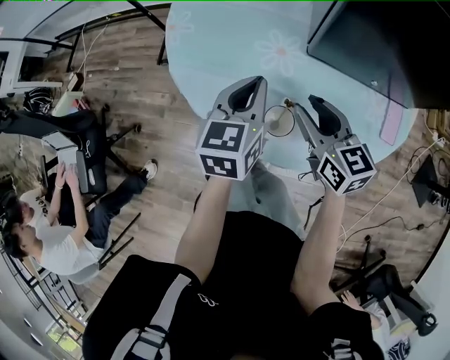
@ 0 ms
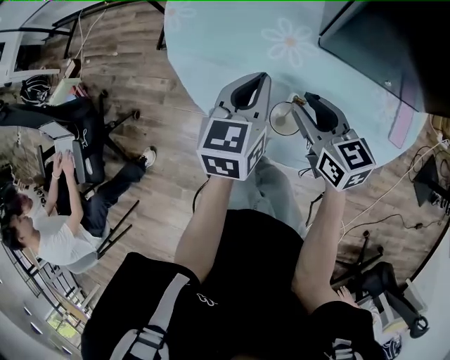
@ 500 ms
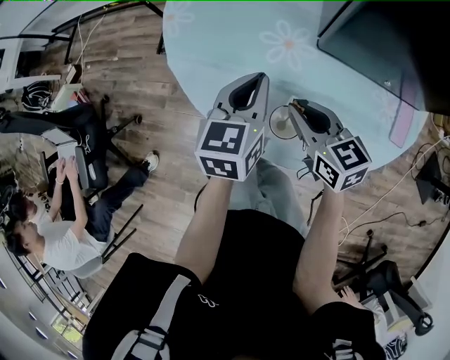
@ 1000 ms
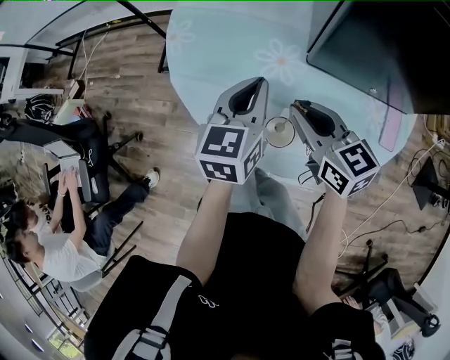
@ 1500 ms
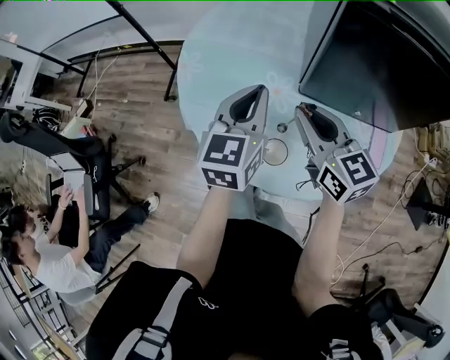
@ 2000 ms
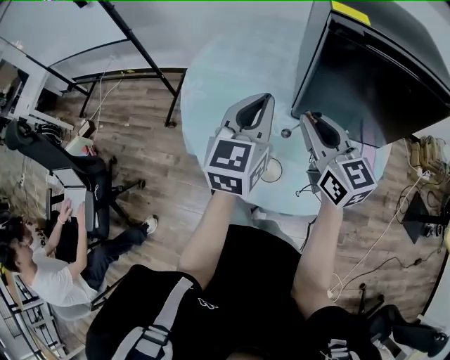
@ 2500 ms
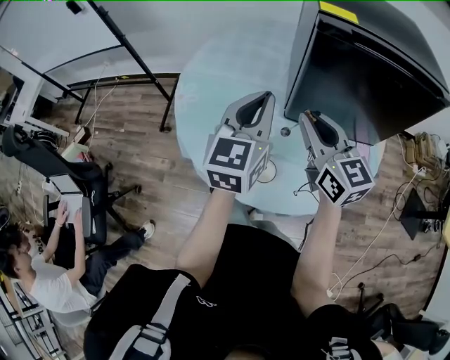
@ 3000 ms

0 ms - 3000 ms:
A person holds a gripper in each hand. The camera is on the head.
0 ms - 1500 ms: The right gripper closes.
1500 ms - 3000 ms: The grippers both shift upward by some 15 cm. The right gripper changes its angle by approximately 20 degrees.

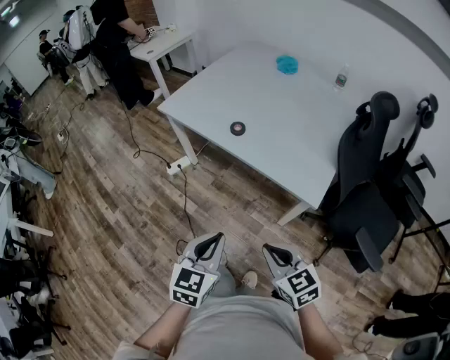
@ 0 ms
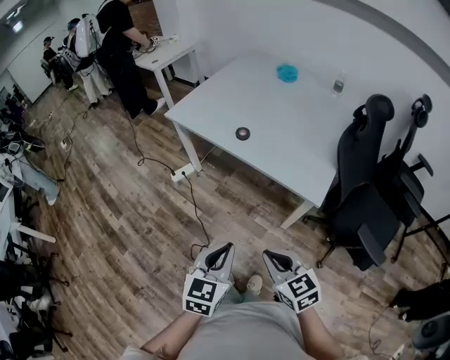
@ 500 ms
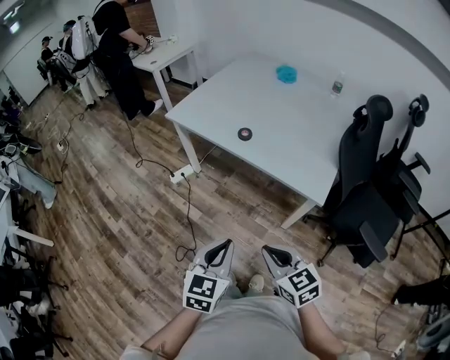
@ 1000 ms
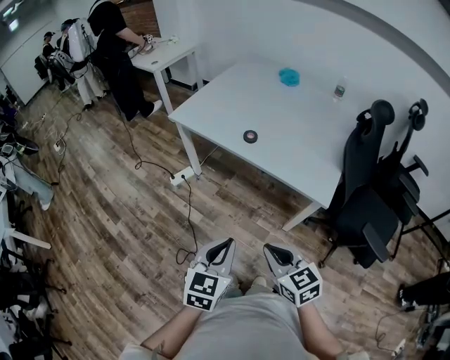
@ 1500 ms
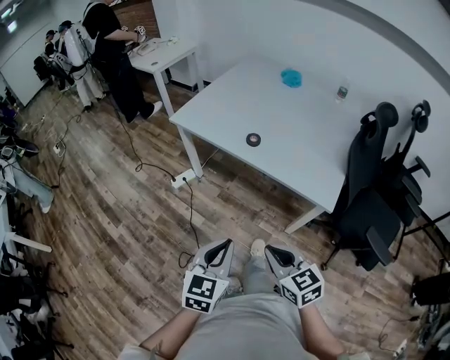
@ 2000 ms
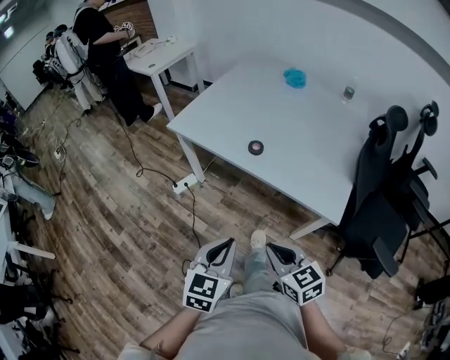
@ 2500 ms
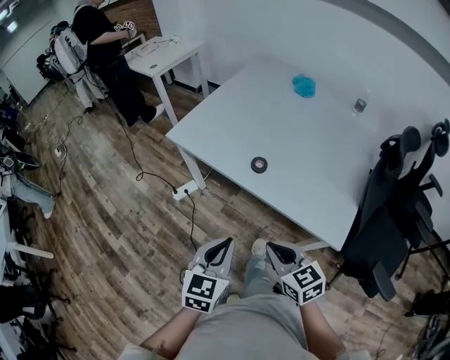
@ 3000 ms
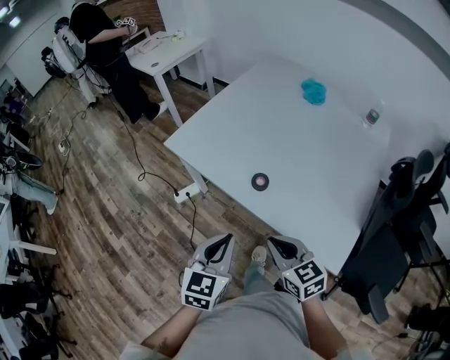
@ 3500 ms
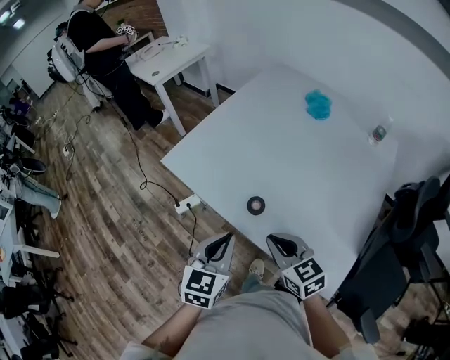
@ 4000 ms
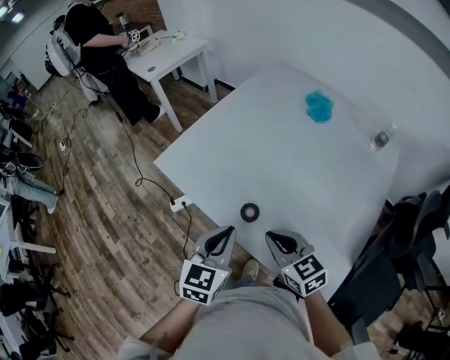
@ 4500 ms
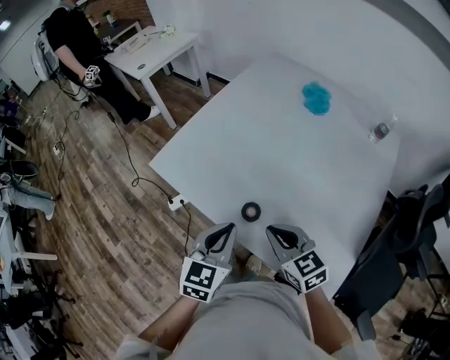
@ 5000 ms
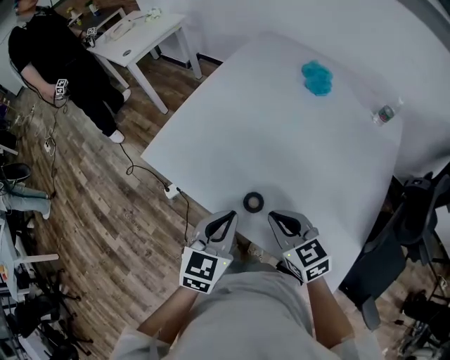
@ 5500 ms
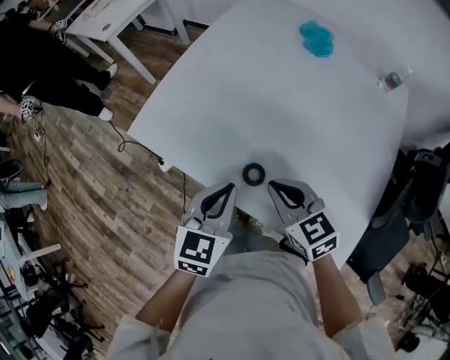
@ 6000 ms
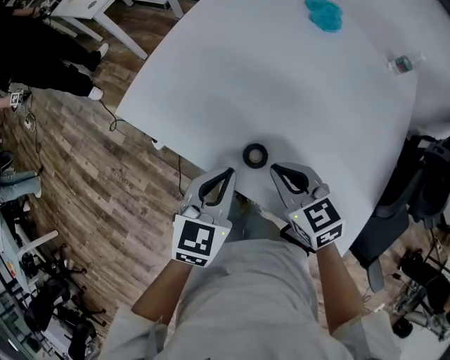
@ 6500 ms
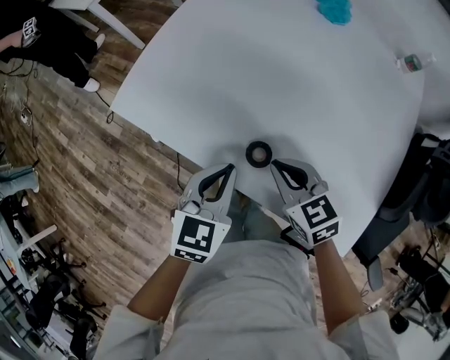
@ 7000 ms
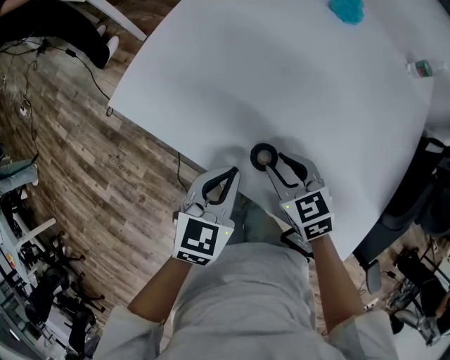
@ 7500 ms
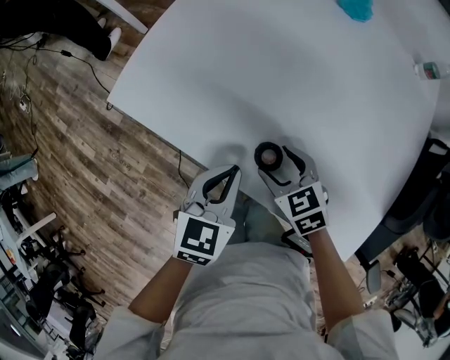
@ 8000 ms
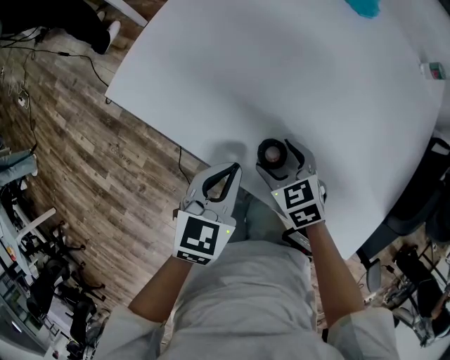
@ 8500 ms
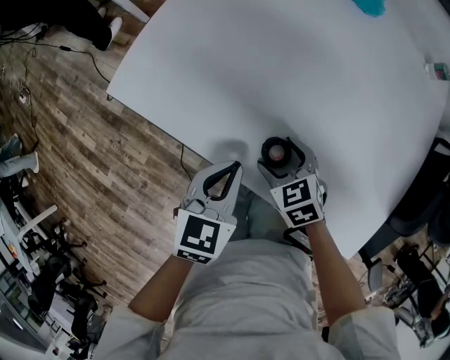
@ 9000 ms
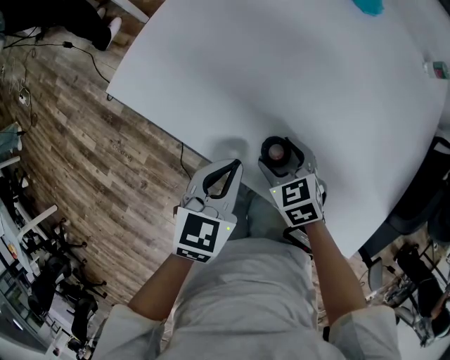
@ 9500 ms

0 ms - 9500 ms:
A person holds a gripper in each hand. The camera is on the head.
0 ms - 2000 ms: The grippers both shift to the left by some 10 cm.
2000 ms - 4000 ms: The grippers both shift forward by some 35 cm.
4000 ms - 5500 ms: Both grippers move forward, roughly 10 cm.
5500 ms - 7500 ms: Both grippers travel together downward, approximately 10 cm.
7500 ms - 9500 ms: The right gripper heads downward, covering some 5 cm, and opens.

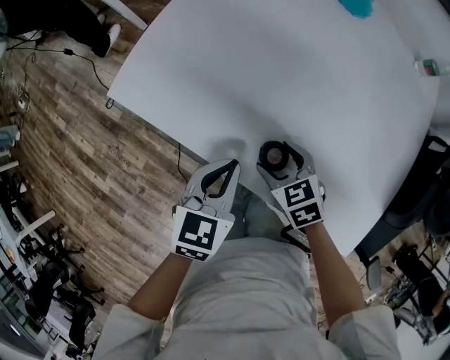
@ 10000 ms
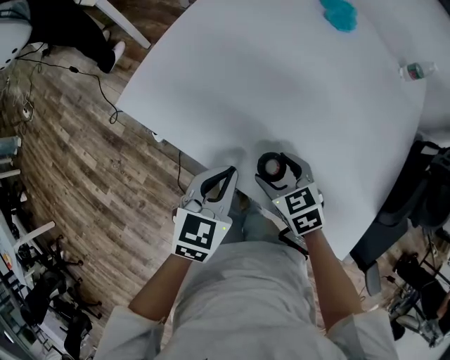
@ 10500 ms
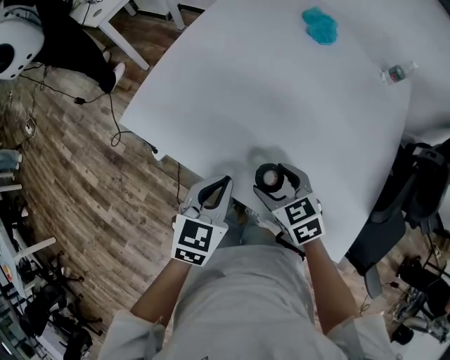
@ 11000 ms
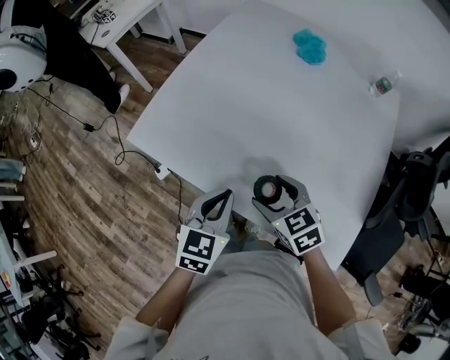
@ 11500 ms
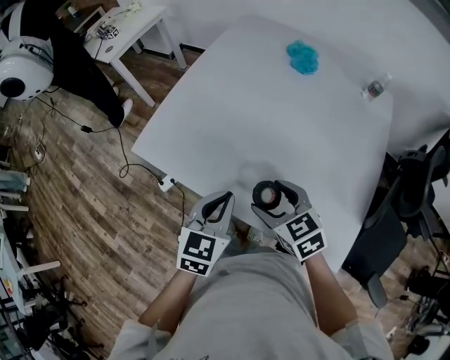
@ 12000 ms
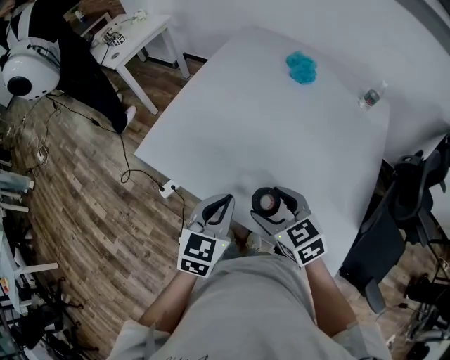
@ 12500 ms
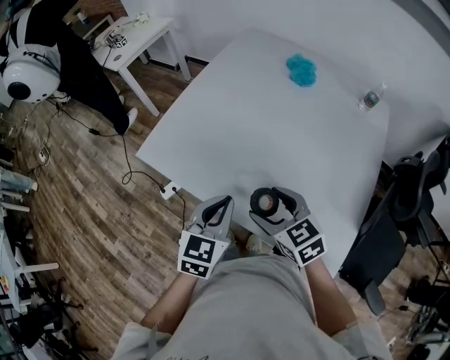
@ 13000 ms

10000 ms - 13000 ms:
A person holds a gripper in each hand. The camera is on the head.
10000 ms - 11500 ms: The left gripper heads upward, covering approximately 5 cm. The right gripper is displaced upward by approximately 10 cm.
11500 ms - 13000 ms: The right gripper shifts approximately 5 cm upward.

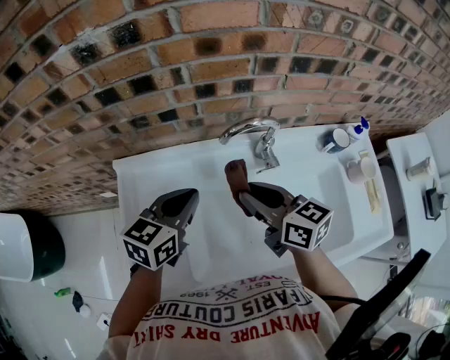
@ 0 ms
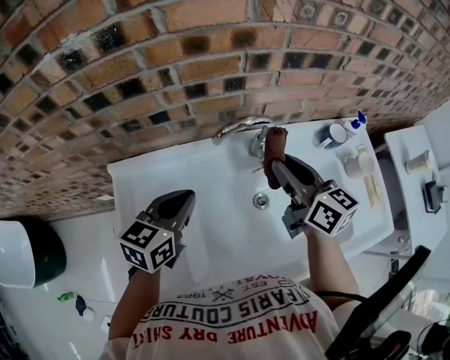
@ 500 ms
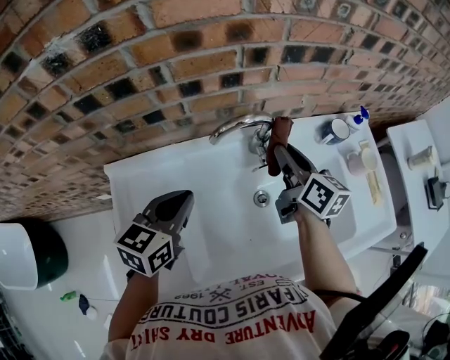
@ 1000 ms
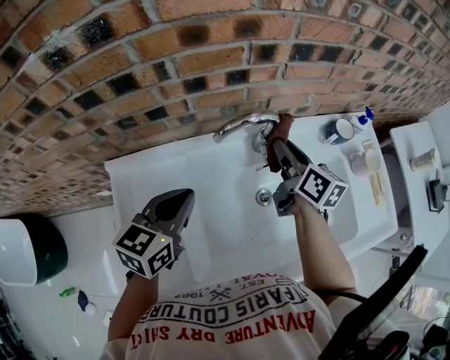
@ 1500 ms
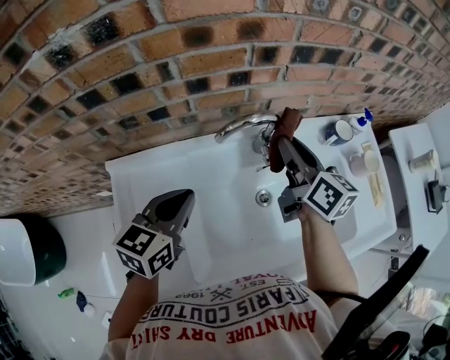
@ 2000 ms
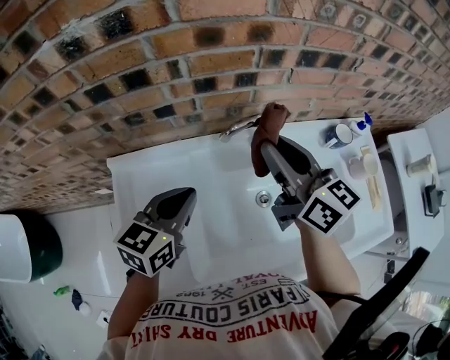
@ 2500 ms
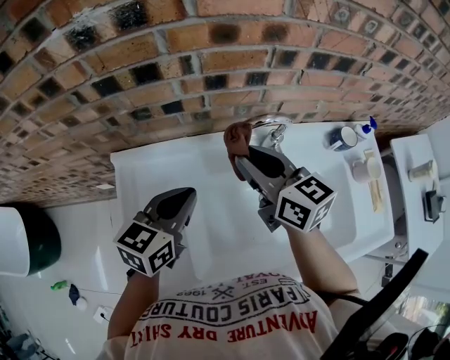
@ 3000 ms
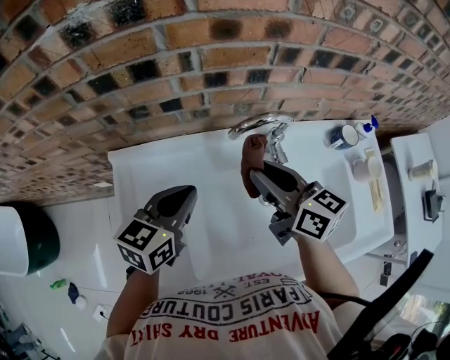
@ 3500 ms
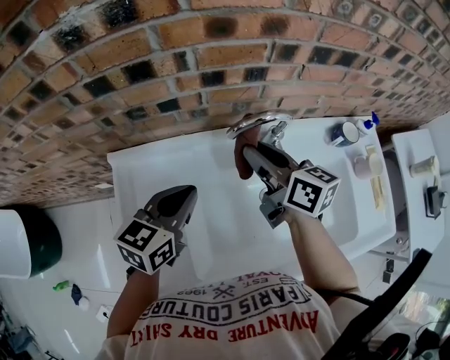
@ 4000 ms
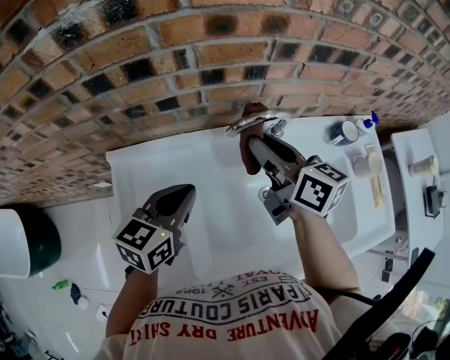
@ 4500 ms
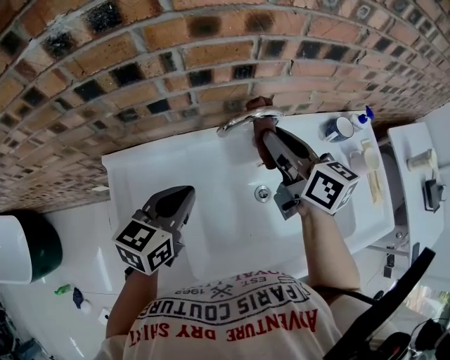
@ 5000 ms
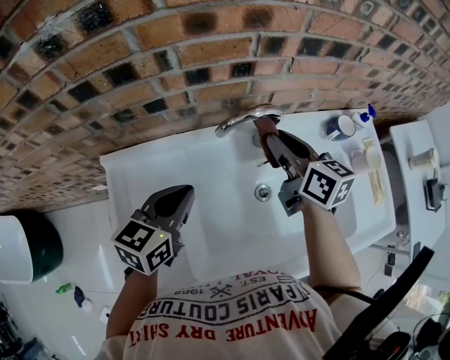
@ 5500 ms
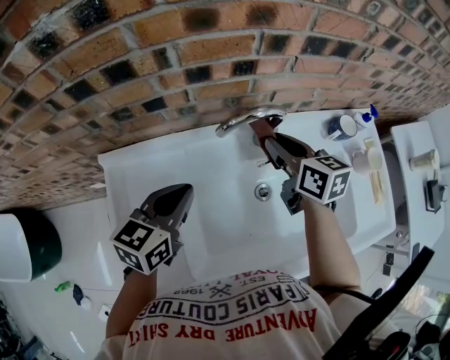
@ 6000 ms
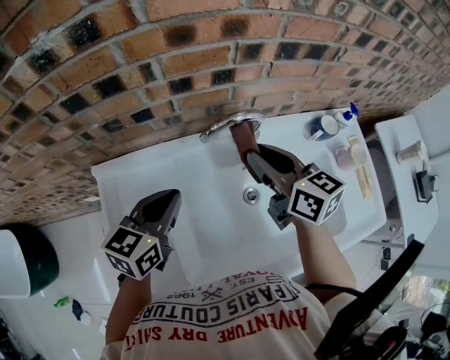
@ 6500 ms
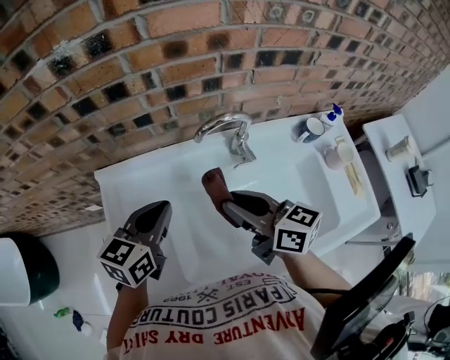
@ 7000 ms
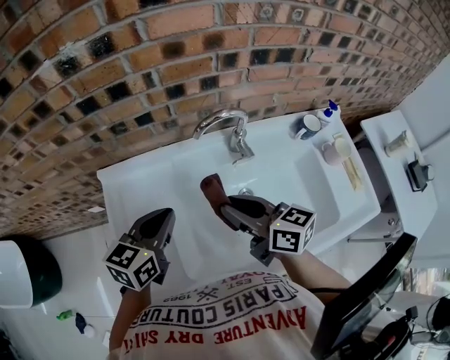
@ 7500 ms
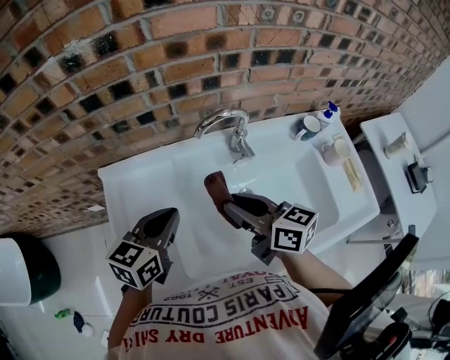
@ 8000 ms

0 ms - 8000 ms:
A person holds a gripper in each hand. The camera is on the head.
0 ms - 2000 ms: The right gripper is displaced forward and to the right by some 15 cm, and rotates about 30 degrees.
2000 ms - 4000 ms: The right gripper goes some 10 cm to the left.
4000 ms - 6000 ms: The right gripper moves to the right, approximately 10 cm.
6000 ms - 8000 ms: The right gripper shifts roughly 20 cm backward and to the left, and rotates some 20 degrees. The left gripper moves backward, roughly 10 cm.

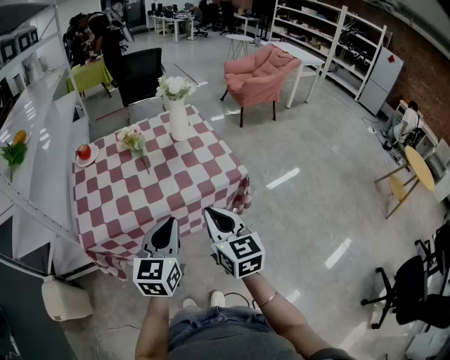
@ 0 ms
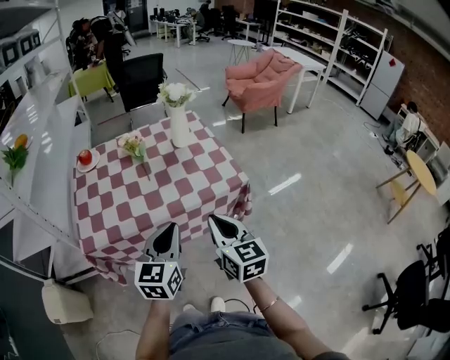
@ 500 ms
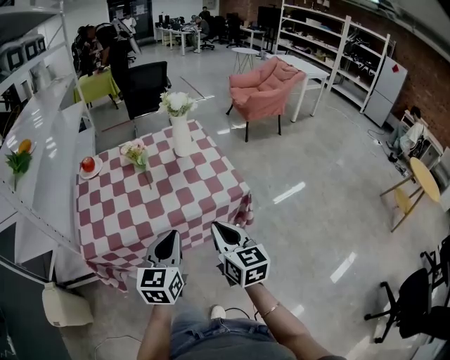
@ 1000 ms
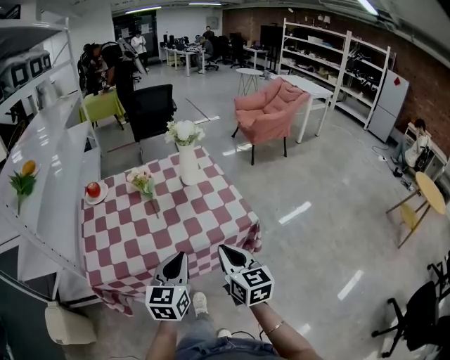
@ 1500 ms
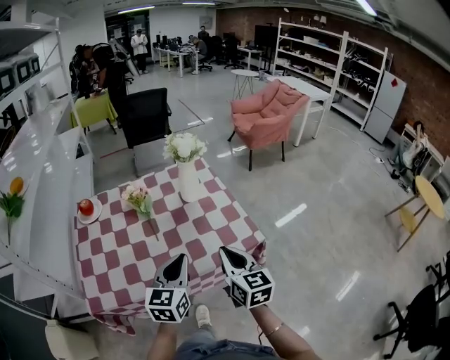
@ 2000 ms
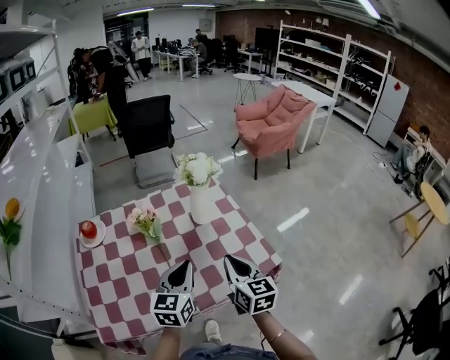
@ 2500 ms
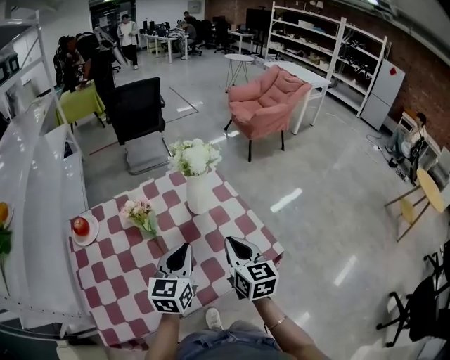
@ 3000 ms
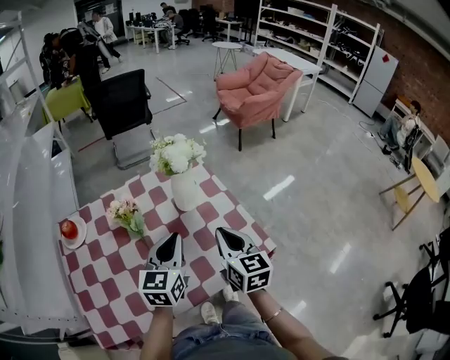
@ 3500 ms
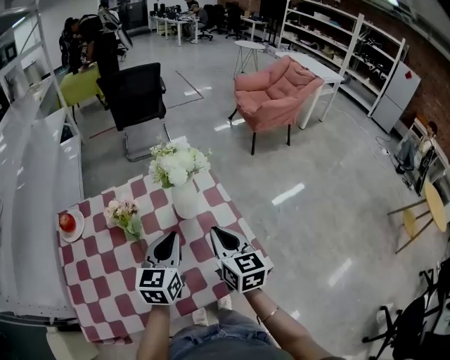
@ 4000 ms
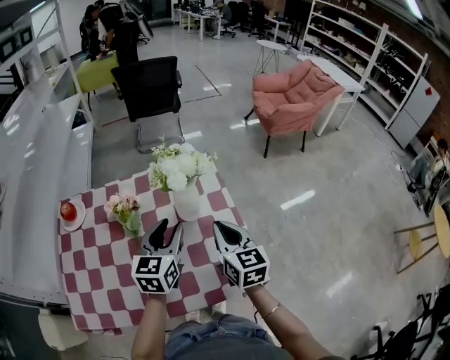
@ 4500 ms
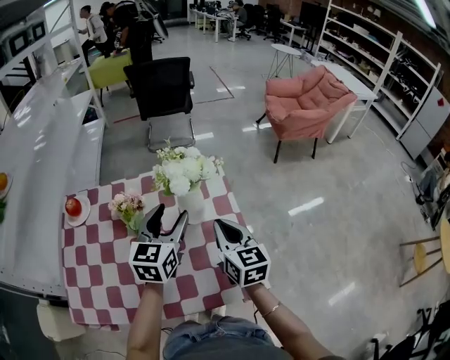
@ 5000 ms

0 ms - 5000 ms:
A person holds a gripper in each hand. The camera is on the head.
0 ms - 2500 ms: Both grippers move forward, some 25 cm.
2500 ms - 5000 ms: The two grippers go approximately 20 cm forward. The left gripper opens its fingers.
